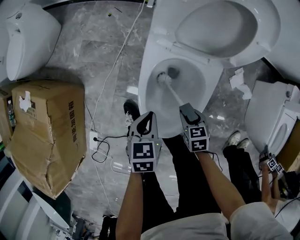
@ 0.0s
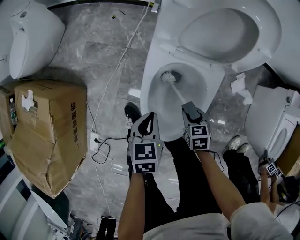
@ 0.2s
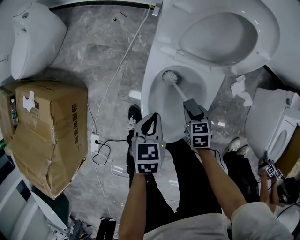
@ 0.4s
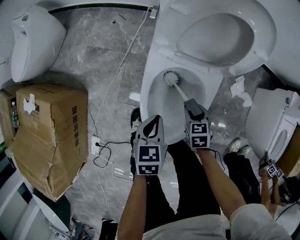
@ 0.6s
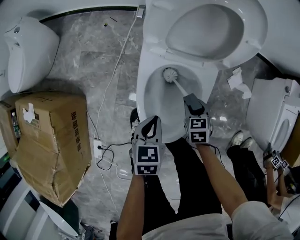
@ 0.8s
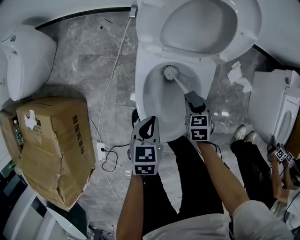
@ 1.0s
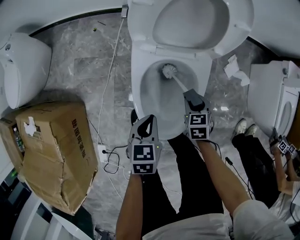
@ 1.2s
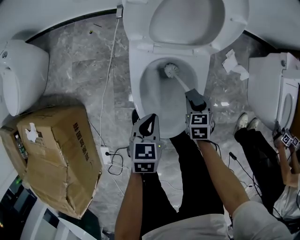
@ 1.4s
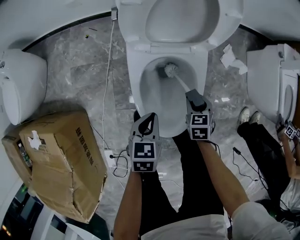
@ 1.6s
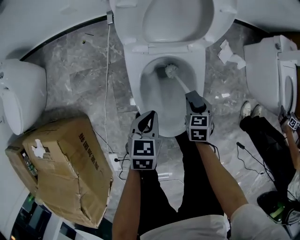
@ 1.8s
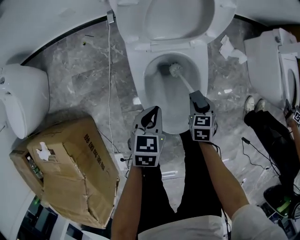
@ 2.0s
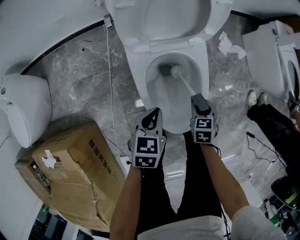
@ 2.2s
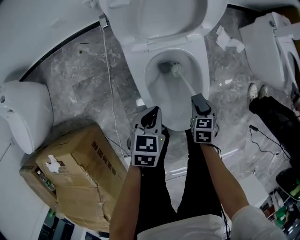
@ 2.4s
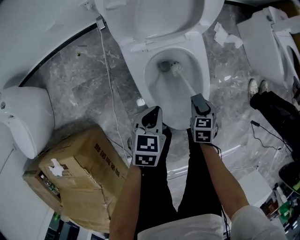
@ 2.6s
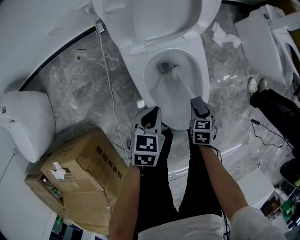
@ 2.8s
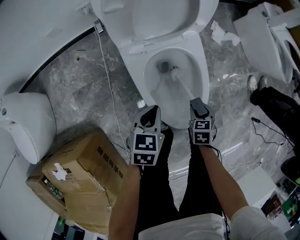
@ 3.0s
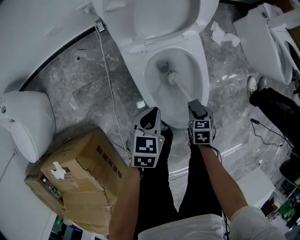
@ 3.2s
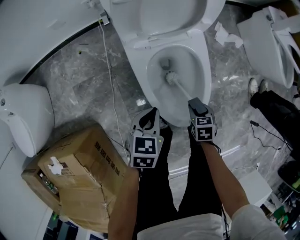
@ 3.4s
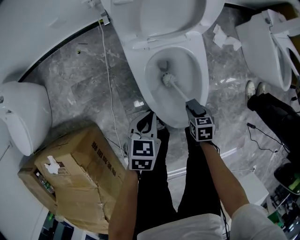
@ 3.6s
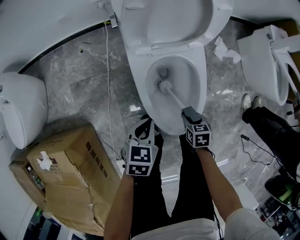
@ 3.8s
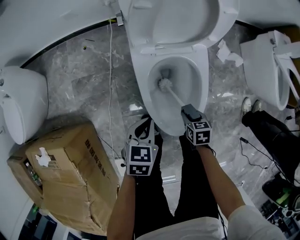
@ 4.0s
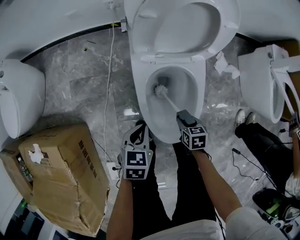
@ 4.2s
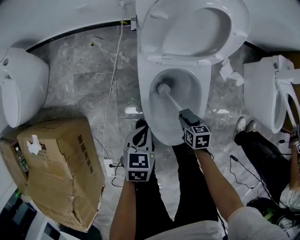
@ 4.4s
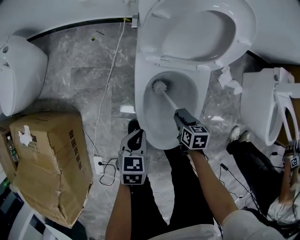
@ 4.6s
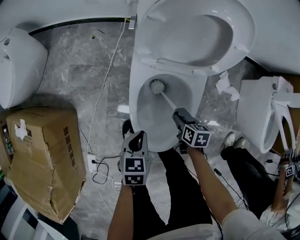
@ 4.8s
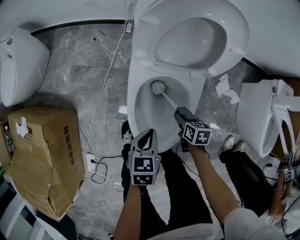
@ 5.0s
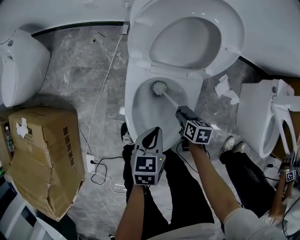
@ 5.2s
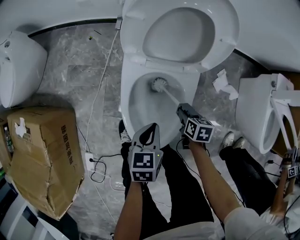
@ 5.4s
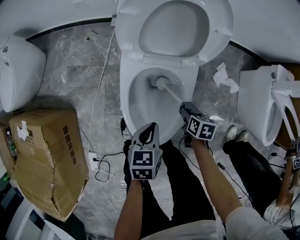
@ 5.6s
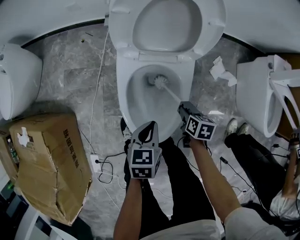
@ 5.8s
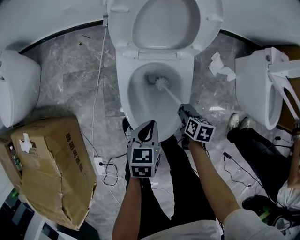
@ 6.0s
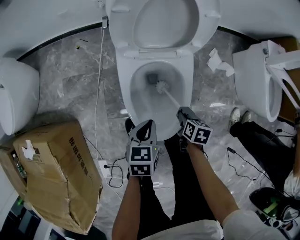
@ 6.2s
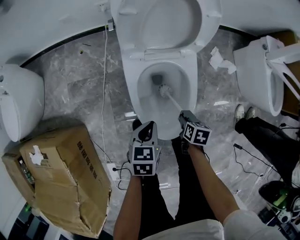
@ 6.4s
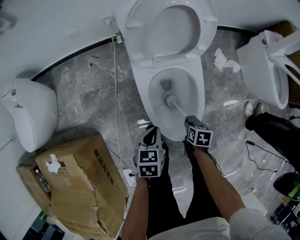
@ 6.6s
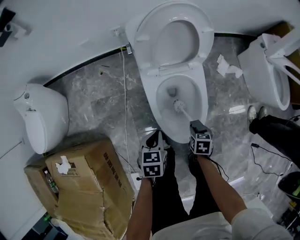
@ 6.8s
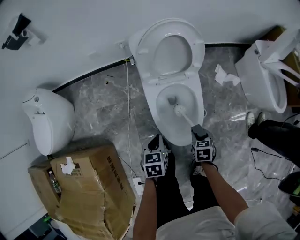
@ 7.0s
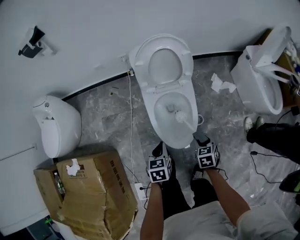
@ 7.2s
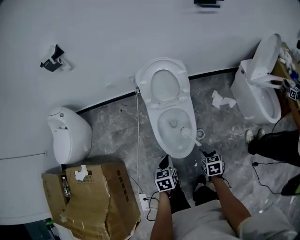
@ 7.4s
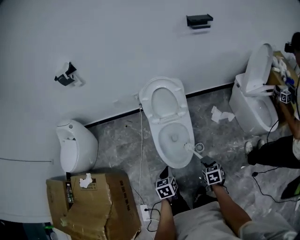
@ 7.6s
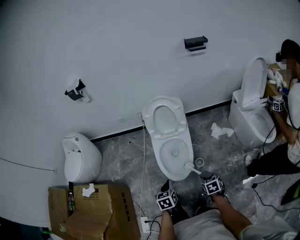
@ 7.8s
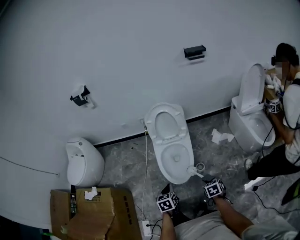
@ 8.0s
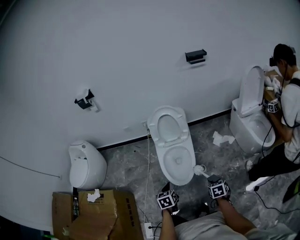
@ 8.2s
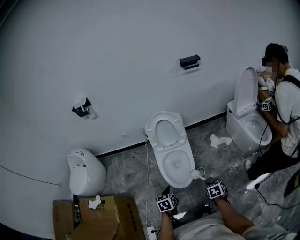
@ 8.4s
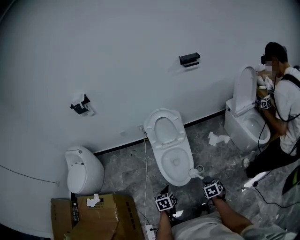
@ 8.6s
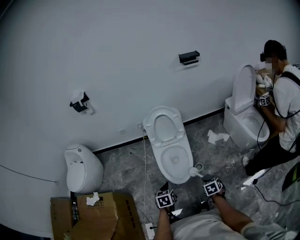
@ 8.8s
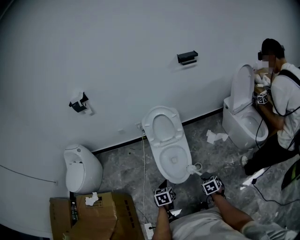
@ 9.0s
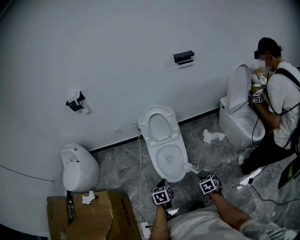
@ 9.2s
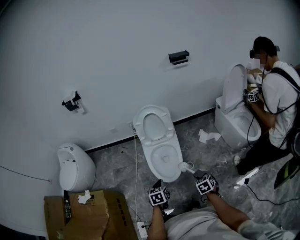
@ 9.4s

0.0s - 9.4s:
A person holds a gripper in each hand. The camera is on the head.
0.0s - 1.6s: The left gripper changes its angle by approximately 20 degrees. The right gripper shifts by some 5 cm, and changes its angle by roughly 20 degrees.
1.6s - 3.2s: The right gripper travels backward by approximately 10 cm, and rotates approximately 20 degrees, while the left gripper rotates roughly 20 degrees.
3.2s - 4.8s: The left gripper turns by about 30 degrees; the right gripper changes place by roughly 10 cm, and changes its angle by approximately 30 degrees.
4.8s - 6.2s: The right gripper shifts some 10 cm backward, and turns by some 20 degrees.
6.2s - 7.8s: The two grippers go approximately 30 cm upward and backward. The right gripper turns by roughly 30 degrees.
7.8s - 9.4s: The right gripper travels upward by roughly 5 cm.

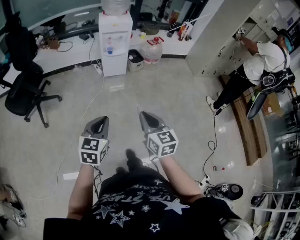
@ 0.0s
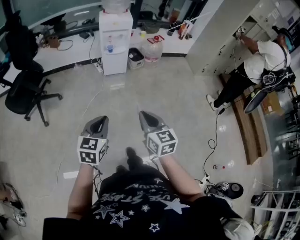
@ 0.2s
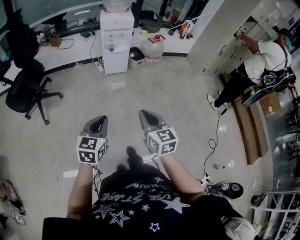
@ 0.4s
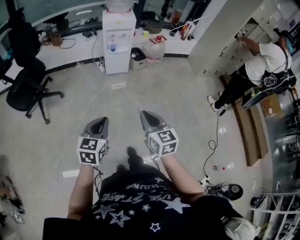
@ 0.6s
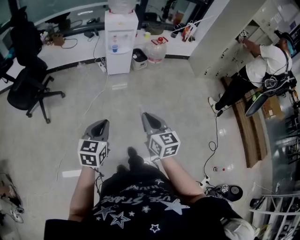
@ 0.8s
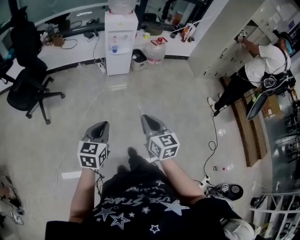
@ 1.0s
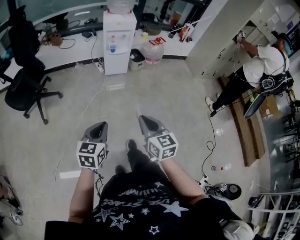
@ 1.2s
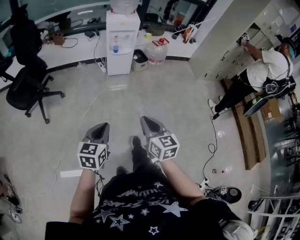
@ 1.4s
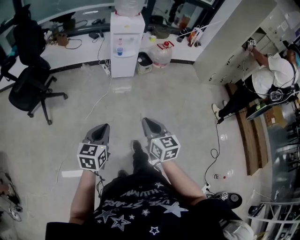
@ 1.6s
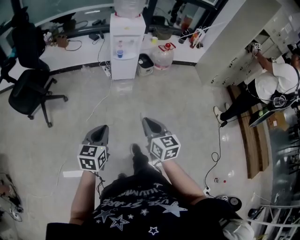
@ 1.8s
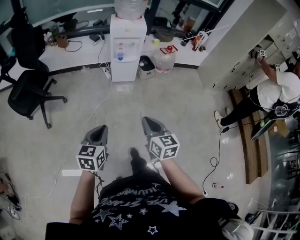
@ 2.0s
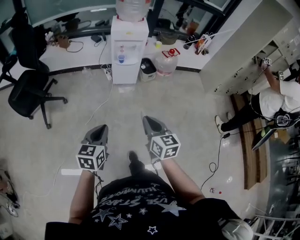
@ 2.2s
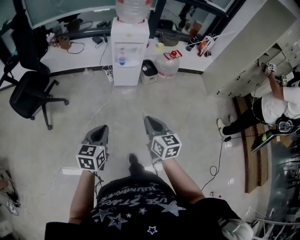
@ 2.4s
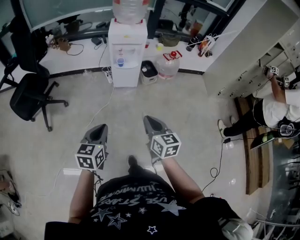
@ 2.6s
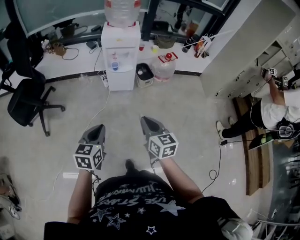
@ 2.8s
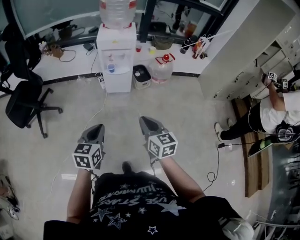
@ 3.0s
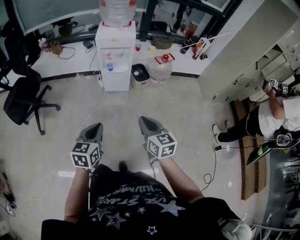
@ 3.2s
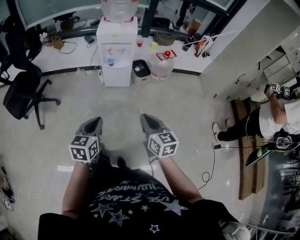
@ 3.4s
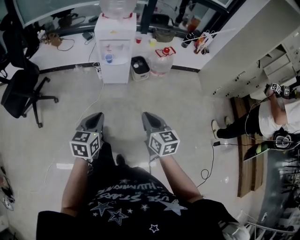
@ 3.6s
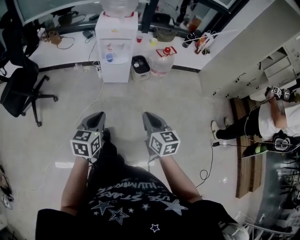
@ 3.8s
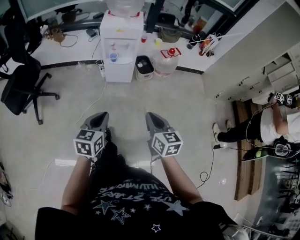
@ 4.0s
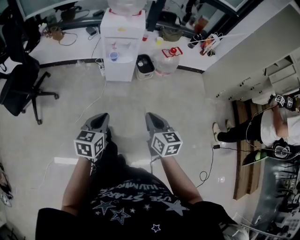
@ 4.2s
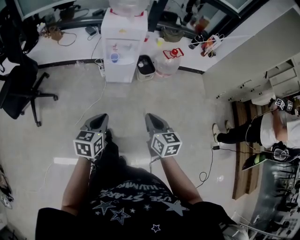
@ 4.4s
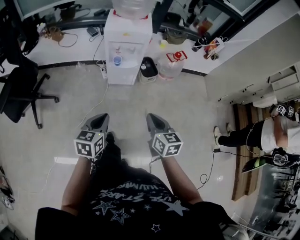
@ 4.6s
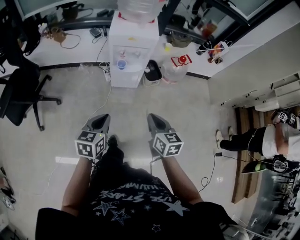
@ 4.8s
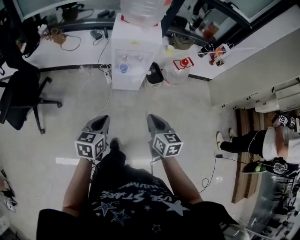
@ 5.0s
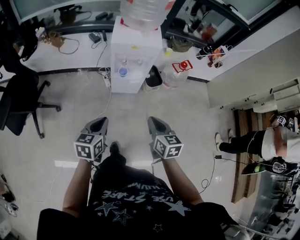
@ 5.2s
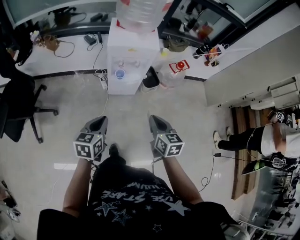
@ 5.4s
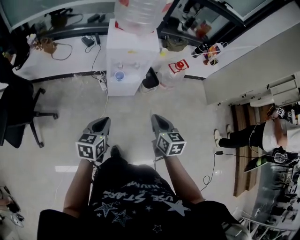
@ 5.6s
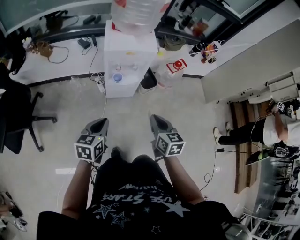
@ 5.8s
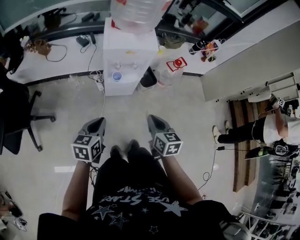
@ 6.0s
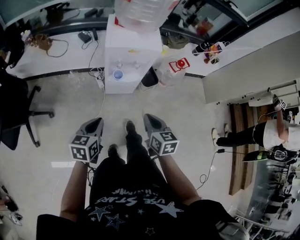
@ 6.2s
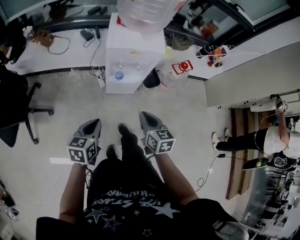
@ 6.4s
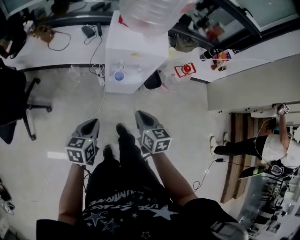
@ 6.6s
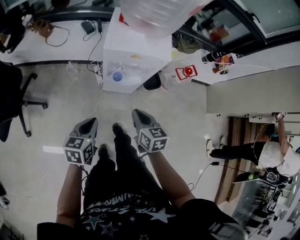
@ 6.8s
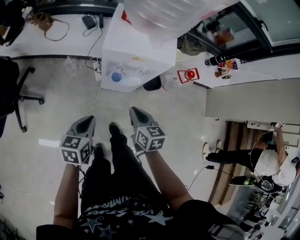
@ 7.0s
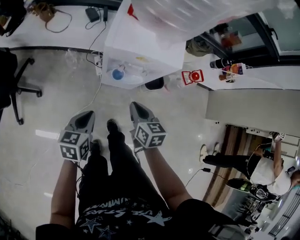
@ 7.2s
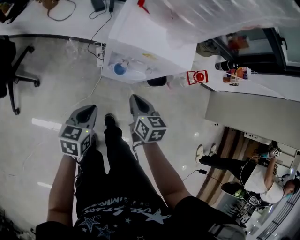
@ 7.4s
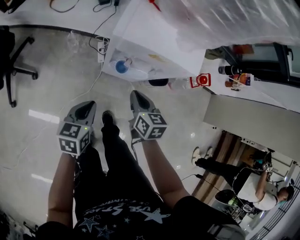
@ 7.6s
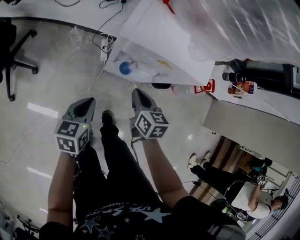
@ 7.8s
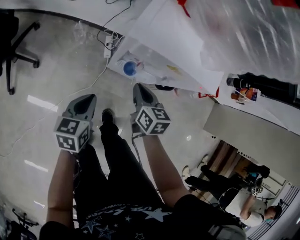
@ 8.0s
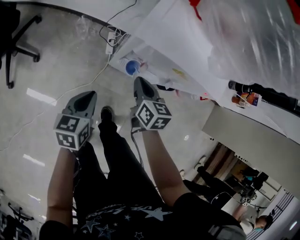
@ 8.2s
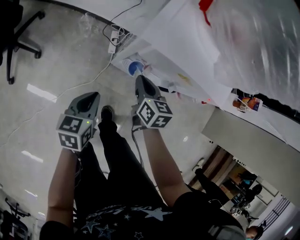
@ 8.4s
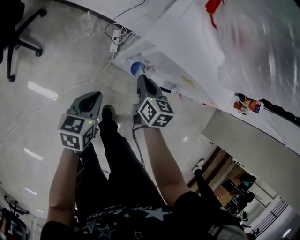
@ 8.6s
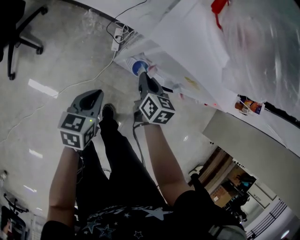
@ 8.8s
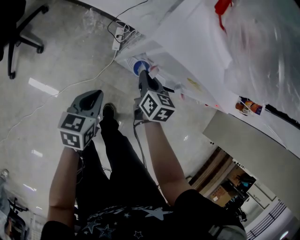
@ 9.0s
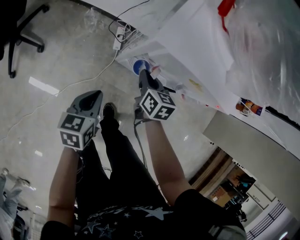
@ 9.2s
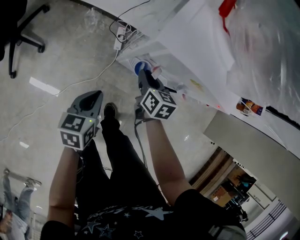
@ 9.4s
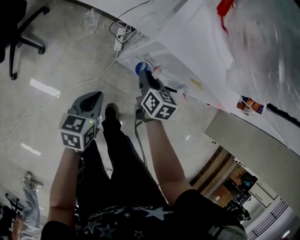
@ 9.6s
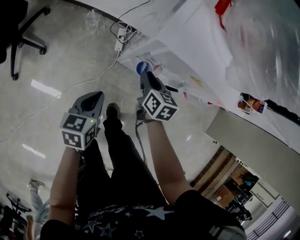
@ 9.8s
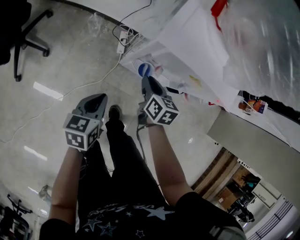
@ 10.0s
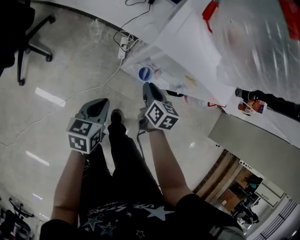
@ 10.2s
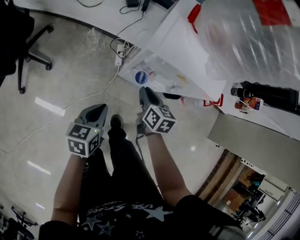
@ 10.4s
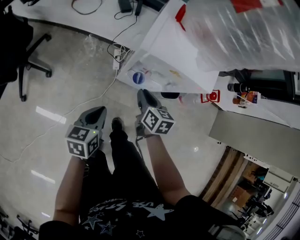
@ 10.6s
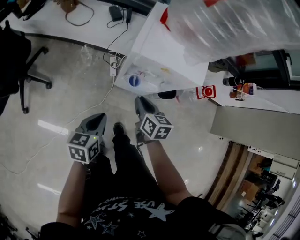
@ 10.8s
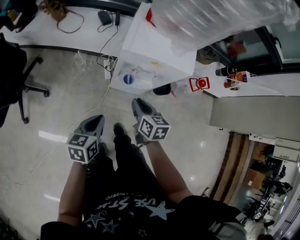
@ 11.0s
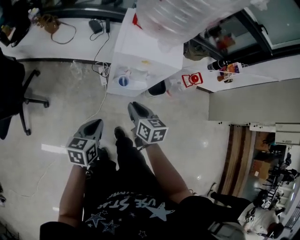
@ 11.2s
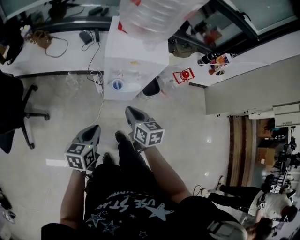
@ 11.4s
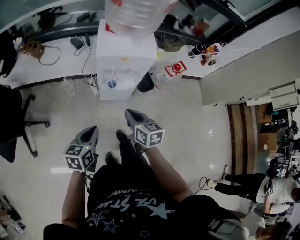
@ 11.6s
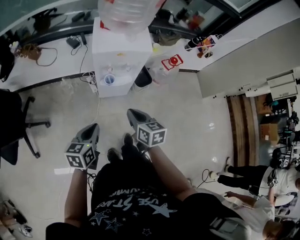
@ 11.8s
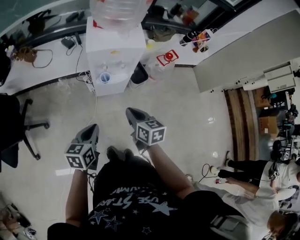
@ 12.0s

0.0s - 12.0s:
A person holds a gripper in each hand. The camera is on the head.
0.0s - 1.6s: The left gripper changes place by about 5 cm.
1.6s - 3.0s: Both grippers travel together forward and to the right, some 30 cm.
3.0s - 4.4s: The grippers both shift forward by some 10 cm.
4.4s - 6.0s: The grippers both shift forward and to the left by some 25 cm.
6.0s - 7.6s: The left gripper travels downward and forward by approximately 25 cm. The right gripper travels forward and downward by roughly 30 cm.
7.6s - 9.0s: The left gripper travels downward by approximately 5 cm. The right gripper goes approximately 15 cm forward and downward.
9.0s - 10.4s: The right gripper heads upward and backward, covering some 10 cm. The left gripper goes about 5 cm upward.
10.4s - 12.0s: The left gripper heads upward and backward, covering roughly 20 cm, and changes its angle by approximately 20 degrees. The right gripper is displaced backward and upward by some 30 cm.

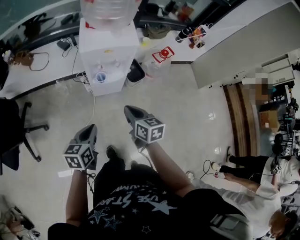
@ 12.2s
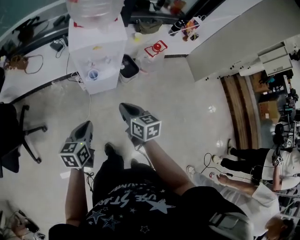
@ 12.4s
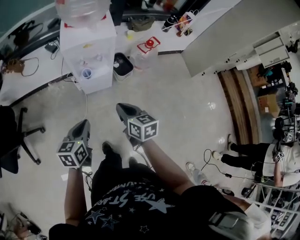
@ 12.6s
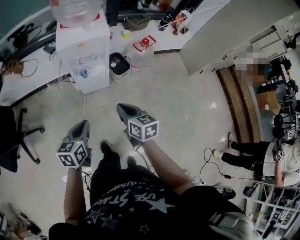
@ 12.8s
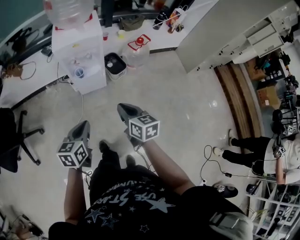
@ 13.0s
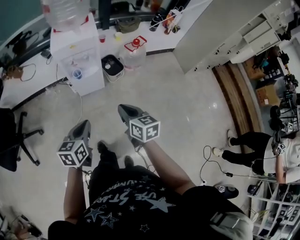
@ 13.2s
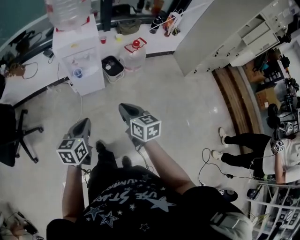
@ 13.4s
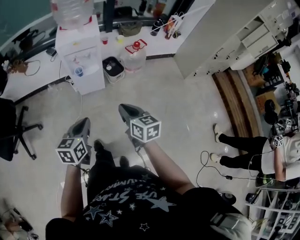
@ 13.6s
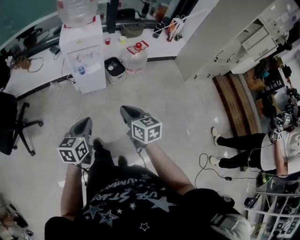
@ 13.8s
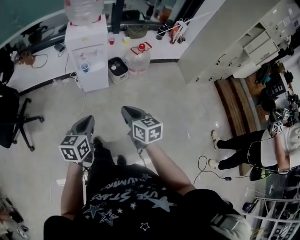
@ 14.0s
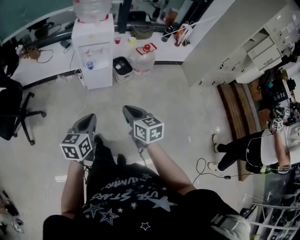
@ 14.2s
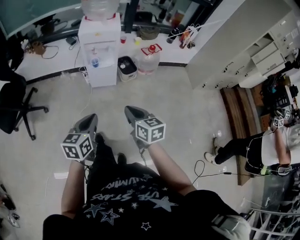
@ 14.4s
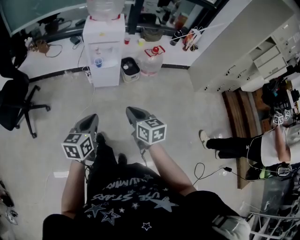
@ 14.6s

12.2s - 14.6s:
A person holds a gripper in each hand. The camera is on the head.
12.2s - 13.4s: The left gripper goes about 20 cm to the right, backward and upward; the right gripper shifts roughly 25 cm backward and to the right.
13.4s - 14.6s: The two grippers go about 10 cm backward.
